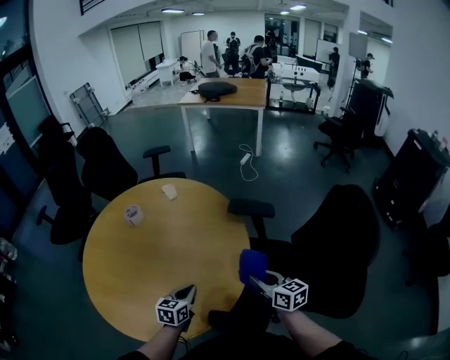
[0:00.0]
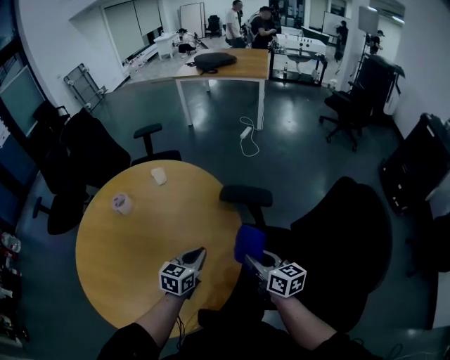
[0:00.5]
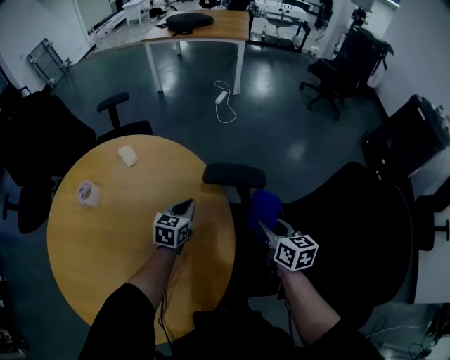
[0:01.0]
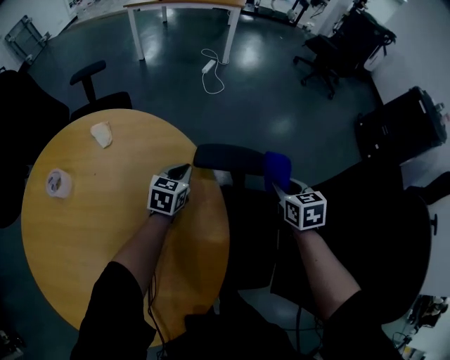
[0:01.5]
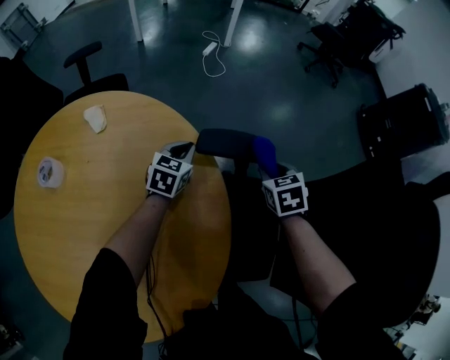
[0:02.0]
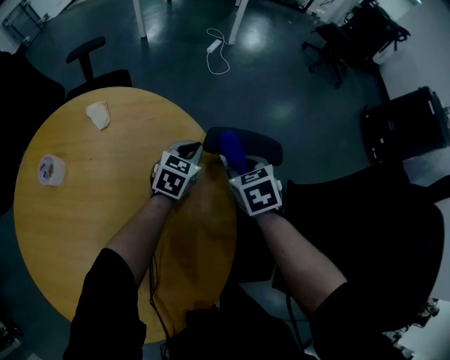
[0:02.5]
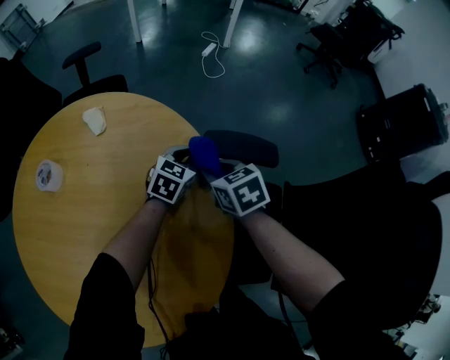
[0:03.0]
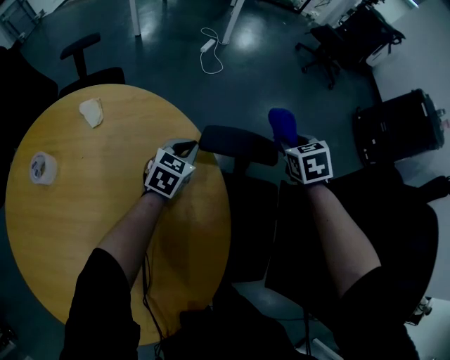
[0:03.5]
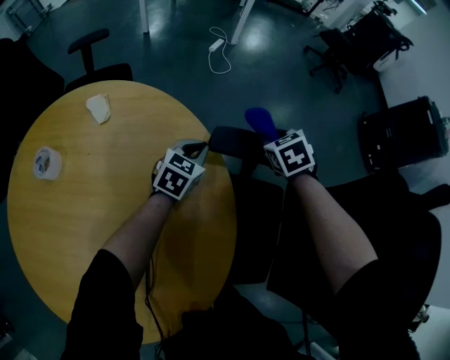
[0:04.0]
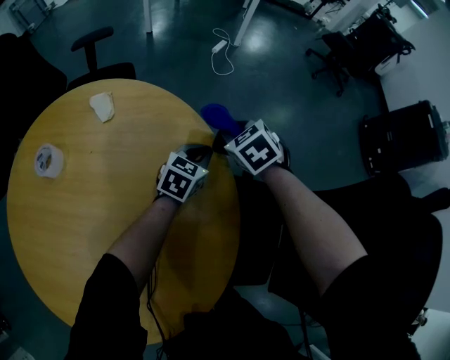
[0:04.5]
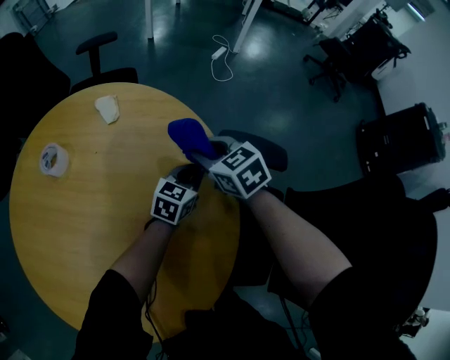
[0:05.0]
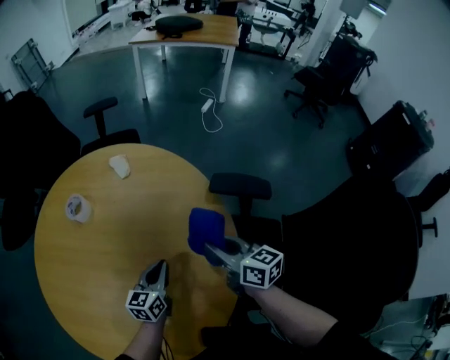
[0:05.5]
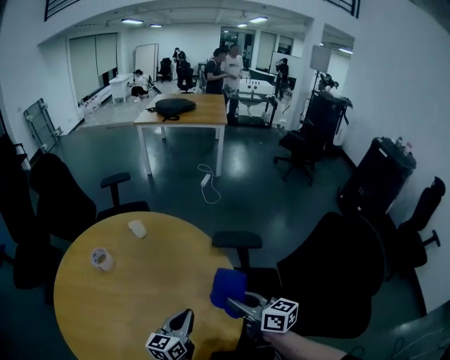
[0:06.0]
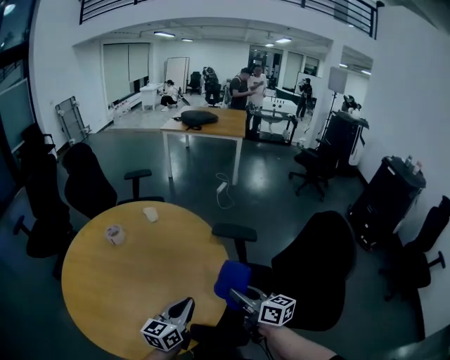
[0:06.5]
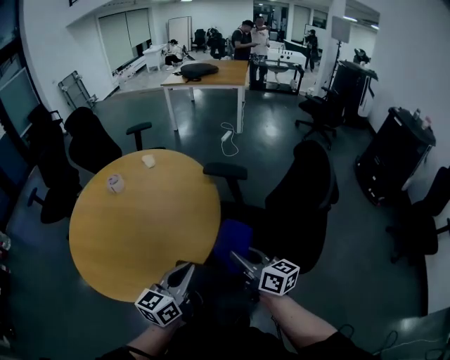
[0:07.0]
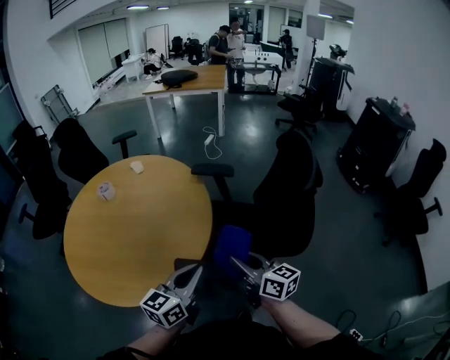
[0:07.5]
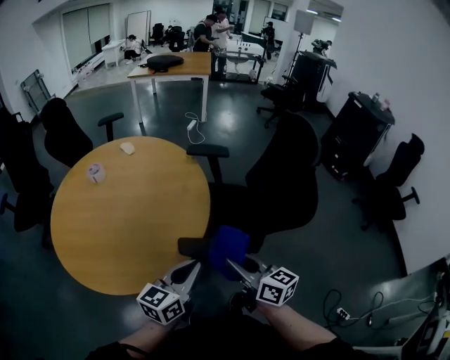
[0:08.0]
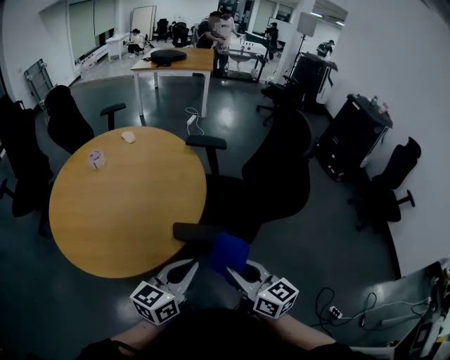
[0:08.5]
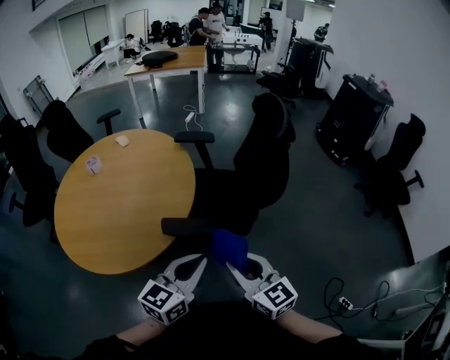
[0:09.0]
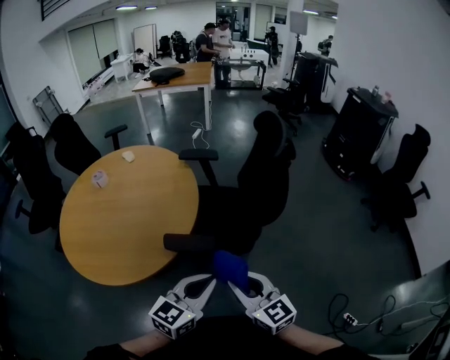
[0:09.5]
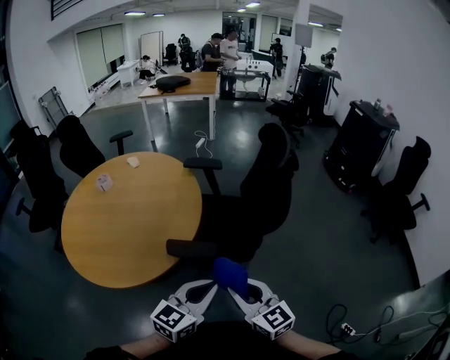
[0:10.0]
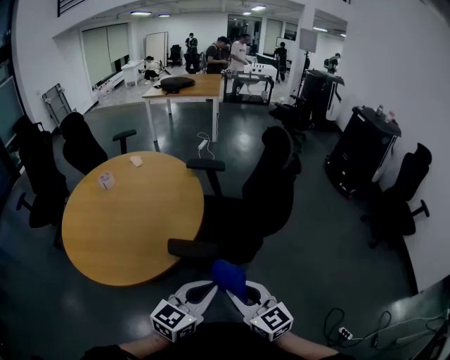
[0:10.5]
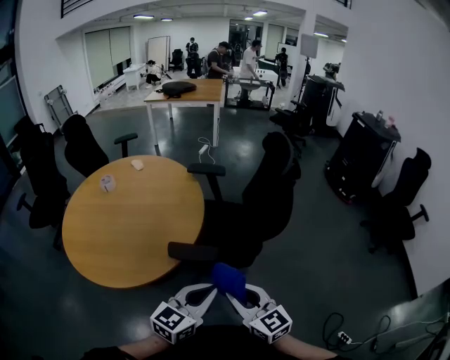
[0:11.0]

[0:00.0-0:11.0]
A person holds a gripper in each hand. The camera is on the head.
0:00.0 to 0:02.0: The left gripper shifts by some 50 cm, and turns by some 20 degrees; the right gripper changes place by about 35 cm, and points its fingers some 40 degrees further downward.
0:02.0 to 0:03.5: The right gripper shifts approximately 10 cm forward, and moves approximately 15 cm to the left and comes back.
0:03.5 to 0:05.5: The left gripper moves approximately 30 cm, and turns by about 40 degrees. Meanwhile the right gripper moves approximately 35 cm, and points its fingers roughly 40 degrees further upward.
0:05.5 to 0:07.5: The two grippers travel together, backward and to the right, some 40 cm. The left gripper shifts roughly 25 cm upward, and swivels some 20 degrees.
0:07.5 to 0:09.0: The grippers both shift backward by about 15 cm. The right gripper swivels about 30 degrees.
0:09.0 to 0:11.0: The grippers make only small movements.

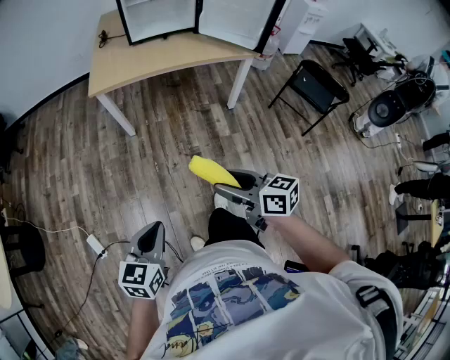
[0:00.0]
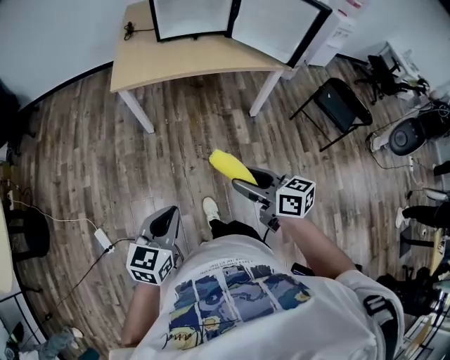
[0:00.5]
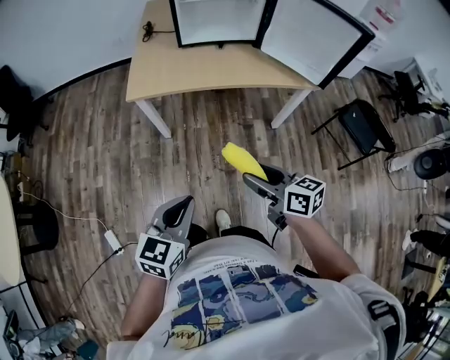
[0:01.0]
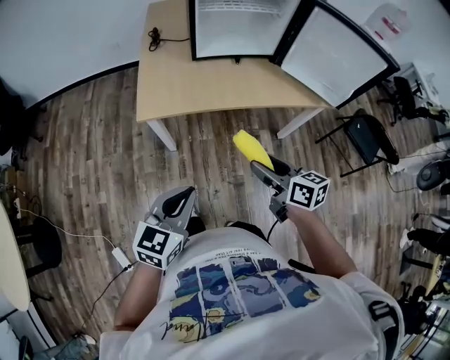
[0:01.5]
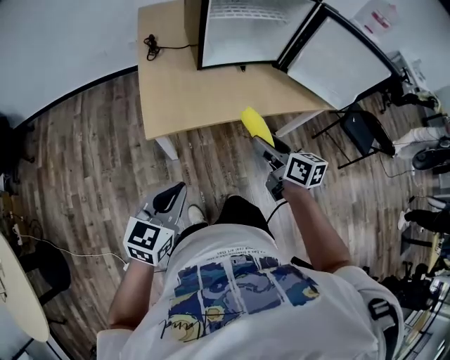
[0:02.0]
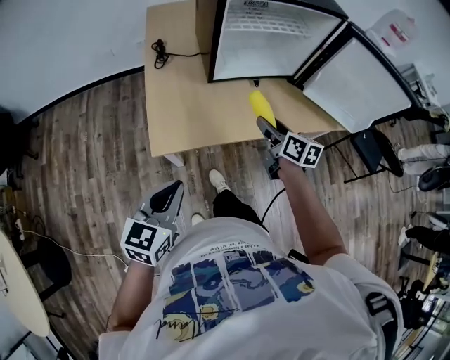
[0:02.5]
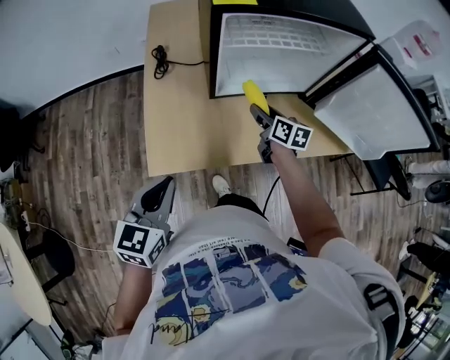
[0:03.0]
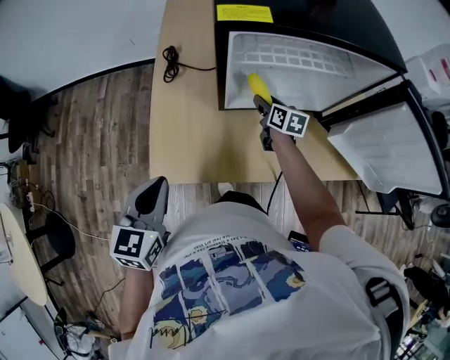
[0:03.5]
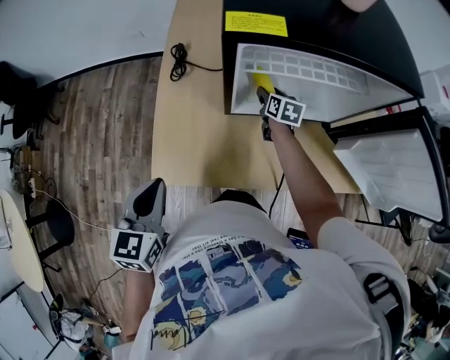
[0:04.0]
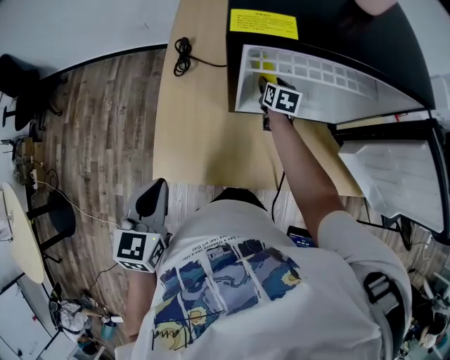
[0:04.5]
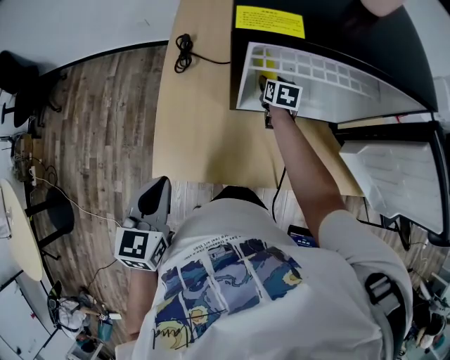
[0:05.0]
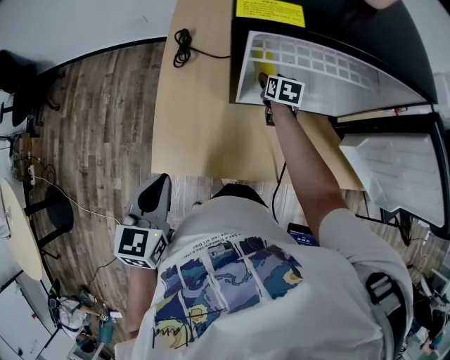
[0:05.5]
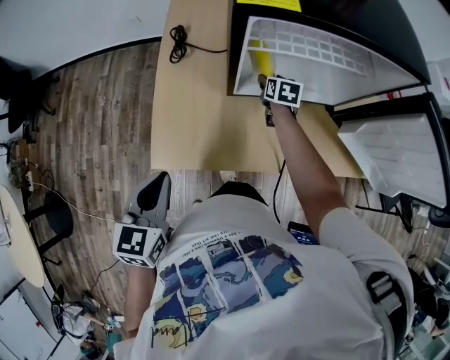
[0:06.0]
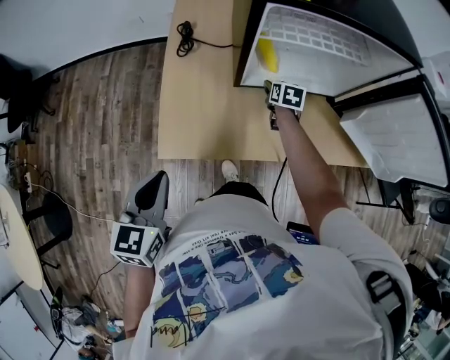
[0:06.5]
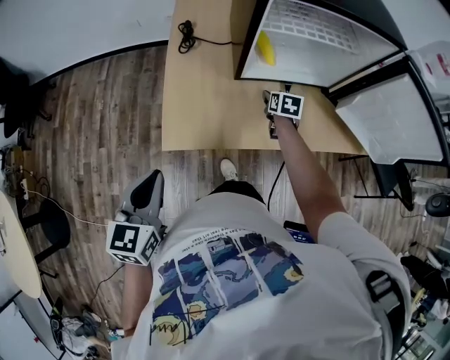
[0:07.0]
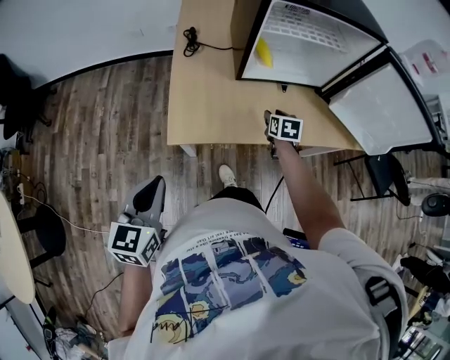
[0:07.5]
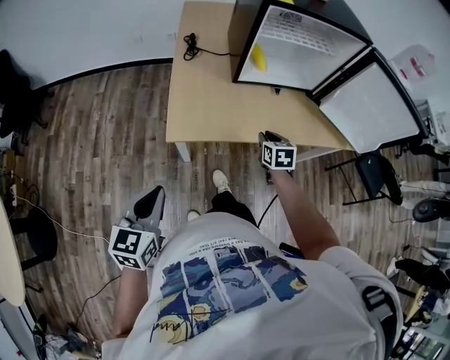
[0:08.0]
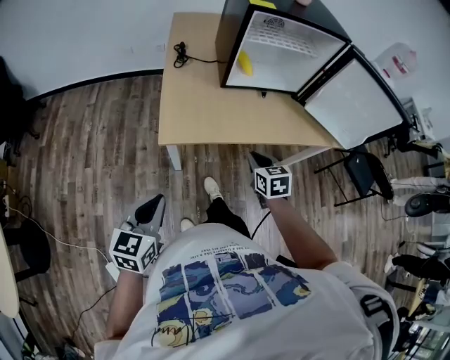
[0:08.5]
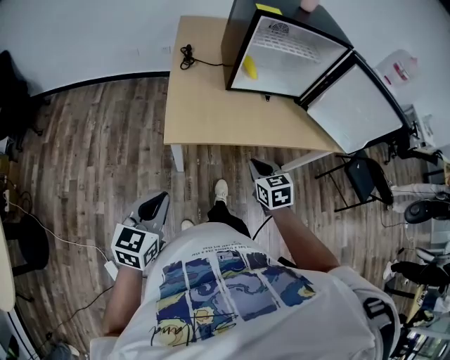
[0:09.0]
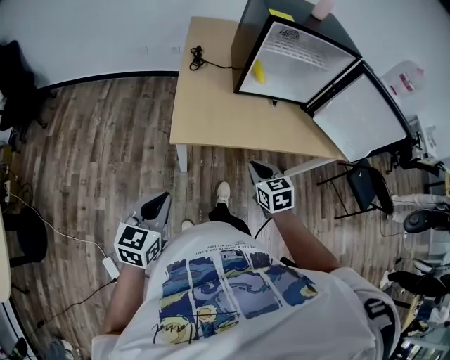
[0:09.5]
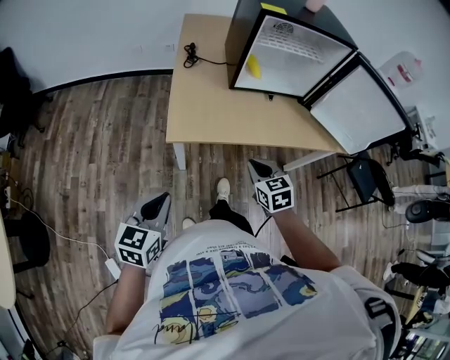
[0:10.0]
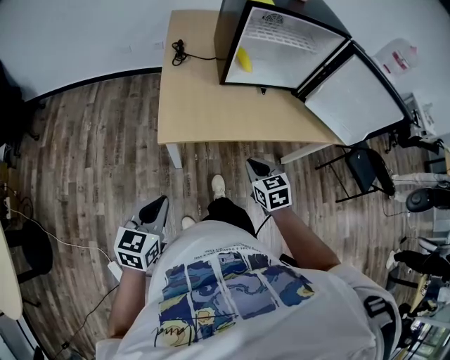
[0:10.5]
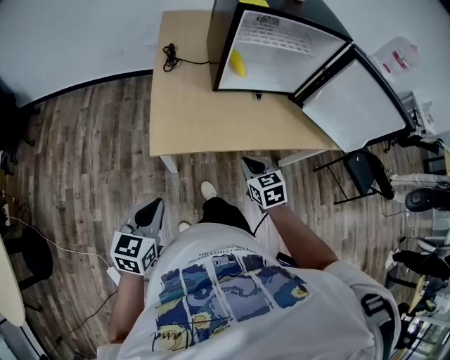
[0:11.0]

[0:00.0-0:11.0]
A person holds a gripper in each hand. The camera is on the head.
0:00.0 to 0:02.0: The two grippers travel together, forward, about 50 cm. The right gripper swivels roughly 20 degrees.
0:02.0 to 0:03.5: The right gripper goes roughly 40 cm forward, while the left gripper is displaced forward by roughly 25 cm, and changes its angle by some 20 degrees.
0:03.5 to 0:05.5: The right gripper travels forward by about 10 cm.
0:05.5 to 0:07.5: The right gripper shifts about 25 cm backward. Meanwhile the left gripper goes approximately 20 cm backward and to the left.
0:07.5 to 0:09.0: The left gripper shifts roughly 10 cm backward. The right gripper heads backward, covering roughly 25 cm, turns by roughly 20 degrees, and closes.
0:09.0 to 0:11.0: The grippers both shift forward by approximately 5 cm.

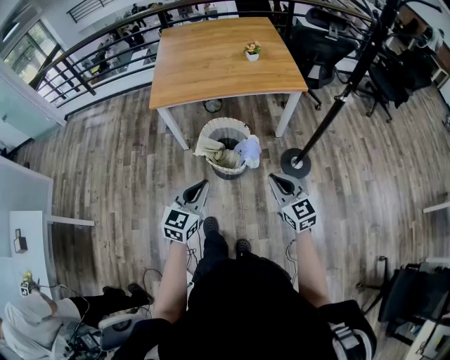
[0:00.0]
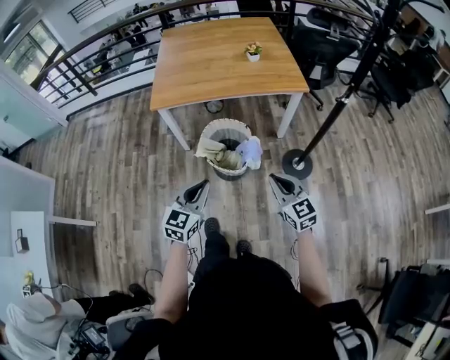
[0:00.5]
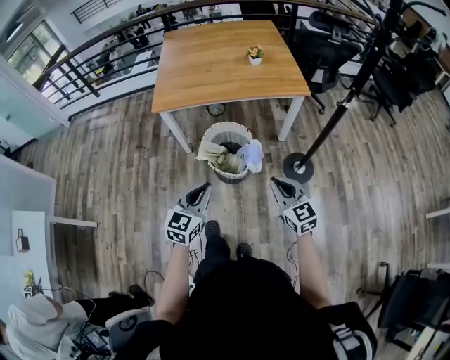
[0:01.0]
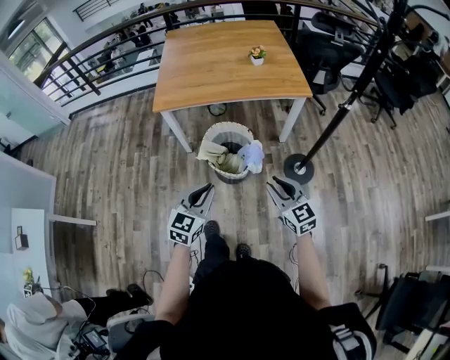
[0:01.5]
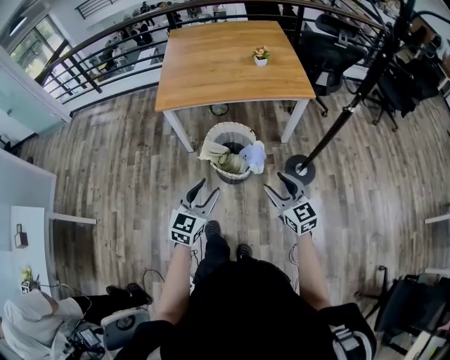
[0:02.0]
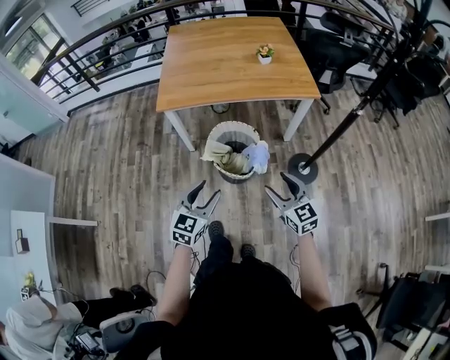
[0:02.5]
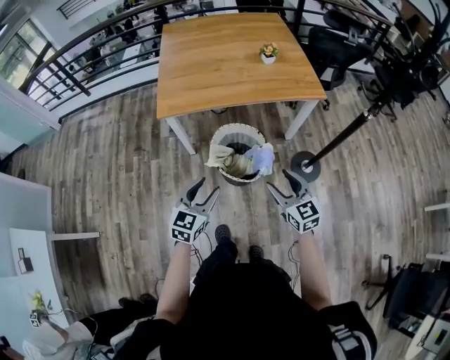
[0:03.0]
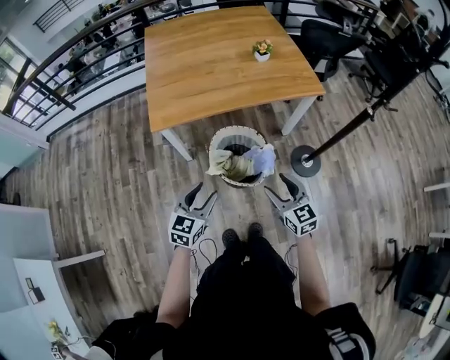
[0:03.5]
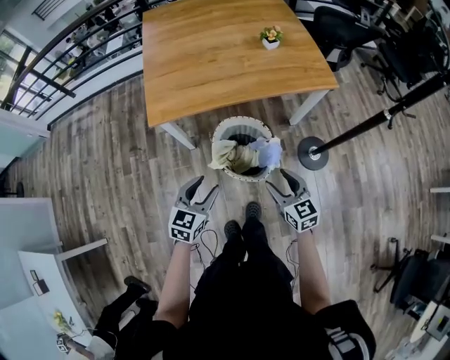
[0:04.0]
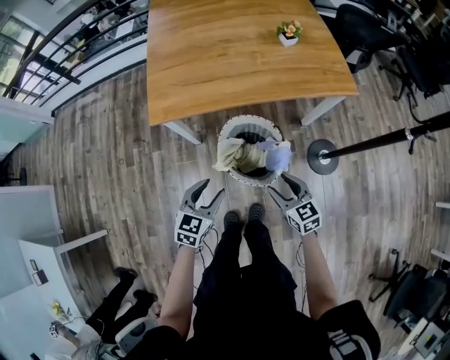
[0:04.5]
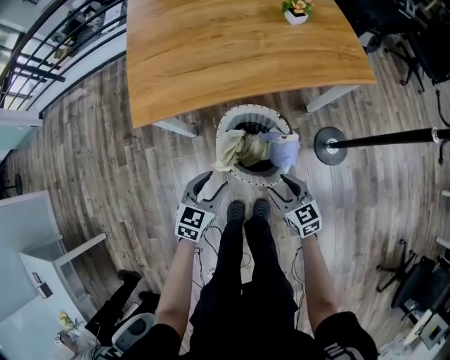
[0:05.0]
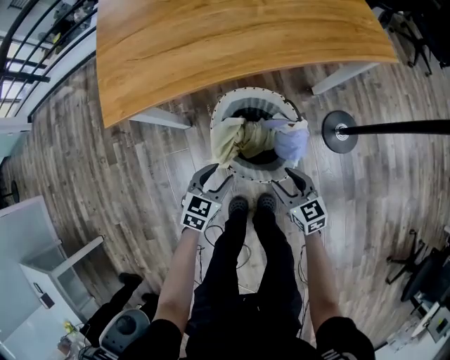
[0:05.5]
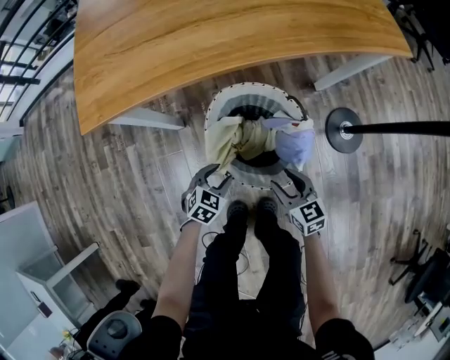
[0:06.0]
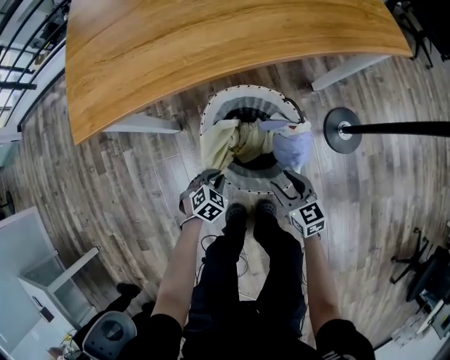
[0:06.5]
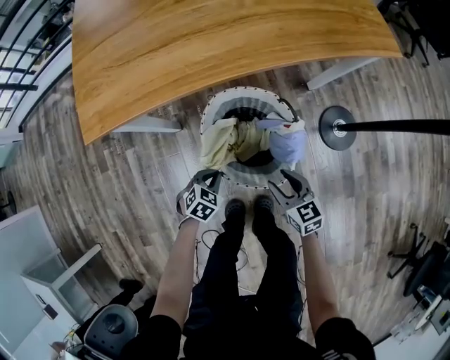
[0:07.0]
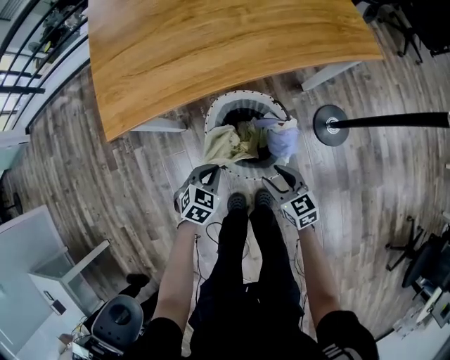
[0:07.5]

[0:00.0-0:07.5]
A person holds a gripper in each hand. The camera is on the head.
0:00.0 to 0:02.0: The right gripper opens up, while the left gripper opens its fingers.
0:02.0 to 0:04.0: Both grippers move forward, to the left and downward, roughly 25 cm.
0:04.0 to 0:05.5: The two grippers go roughly 30 cm downward.
0:05.5 to 0:07.5: The right gripper goes downward and returns, some 10 cm each way; the left gripper goes downward and returns, about 20 cm each way, and closes.
